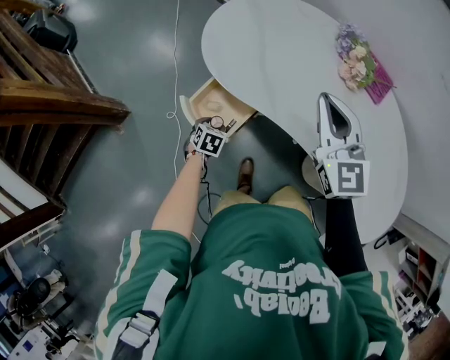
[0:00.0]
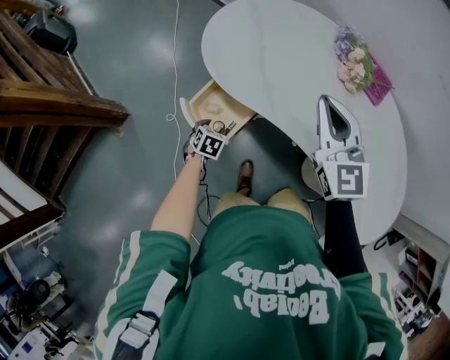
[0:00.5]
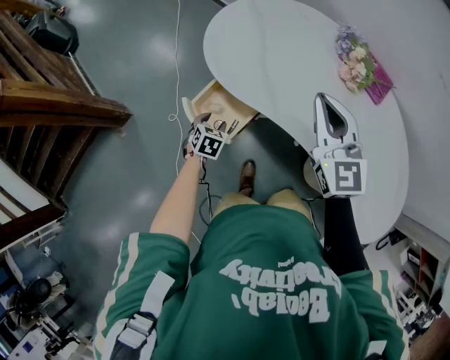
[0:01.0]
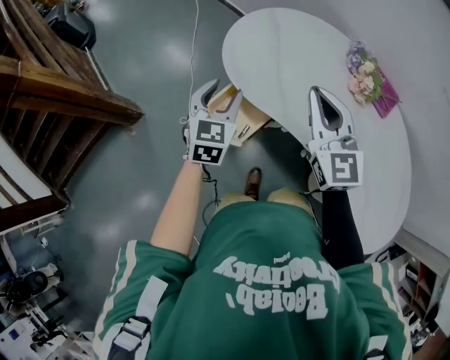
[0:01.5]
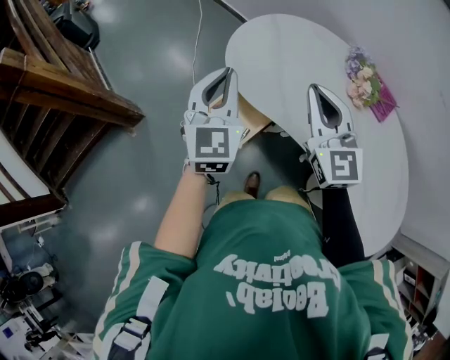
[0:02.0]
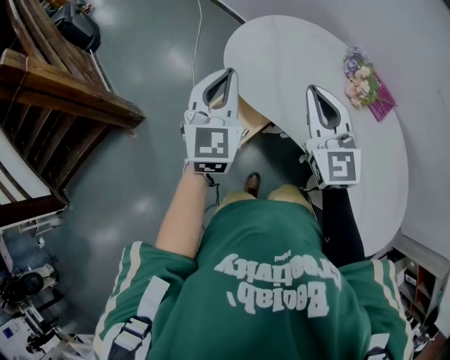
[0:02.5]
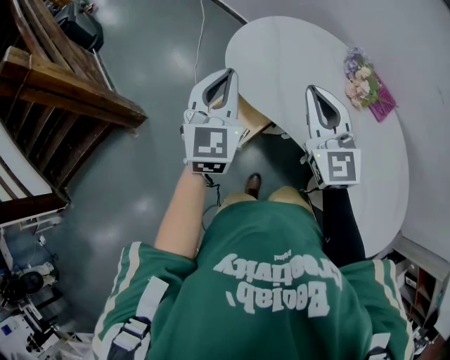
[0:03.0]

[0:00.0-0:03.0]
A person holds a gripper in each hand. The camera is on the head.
0:00.0 to 0:01.5: The right gripper goes roughly 5 cm to the left. The left gripper is displaced upward by roughly 30 cm, and tilts its fingers about 40 degrees upward.
0:01.5 to 0:03.0: The left gripper is displaced upward by about 15 cm, and closes up.

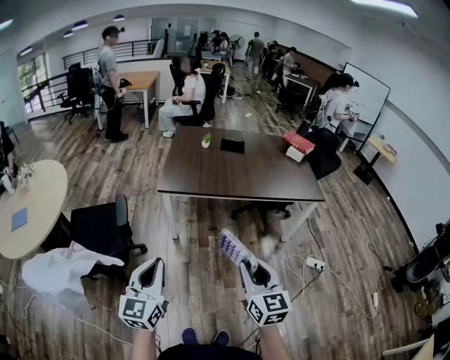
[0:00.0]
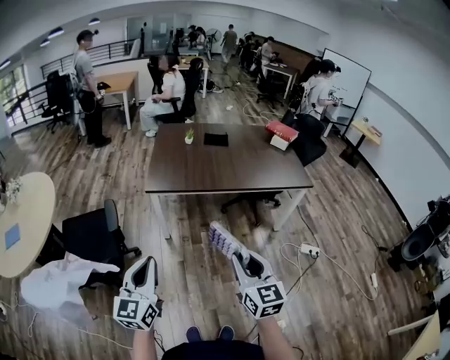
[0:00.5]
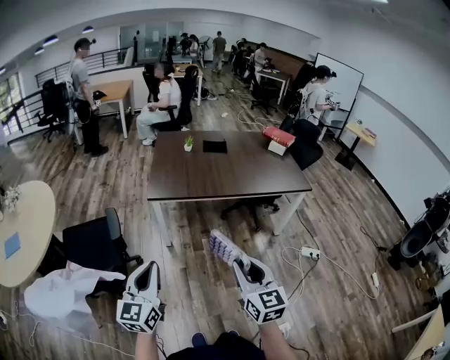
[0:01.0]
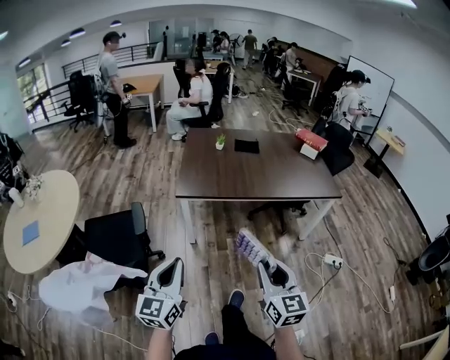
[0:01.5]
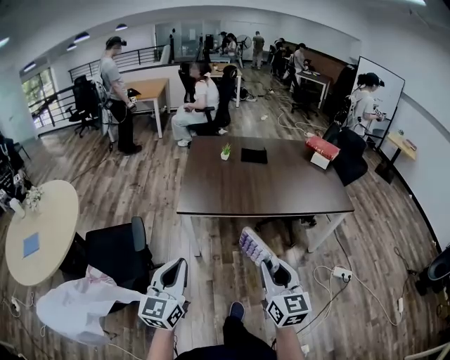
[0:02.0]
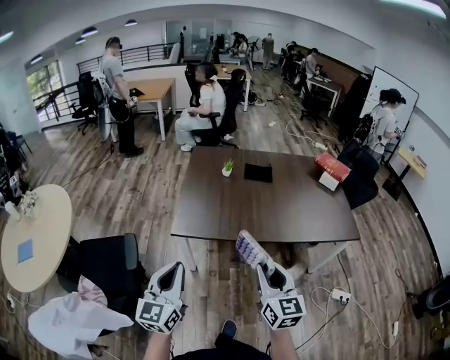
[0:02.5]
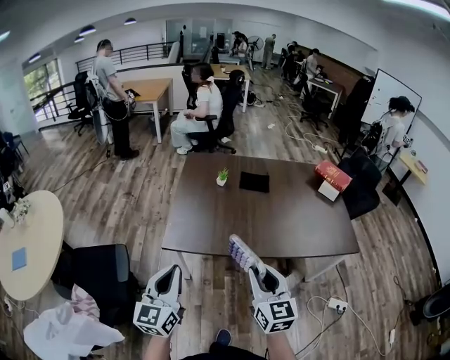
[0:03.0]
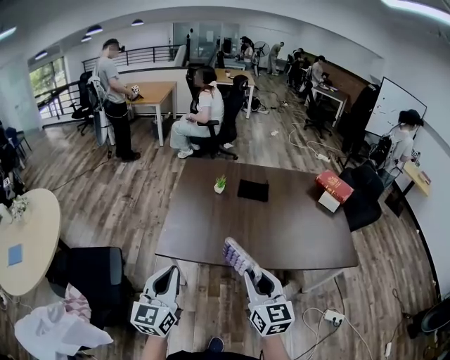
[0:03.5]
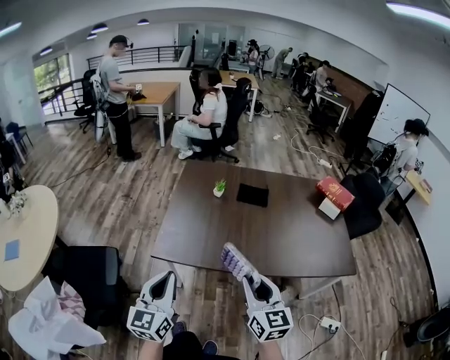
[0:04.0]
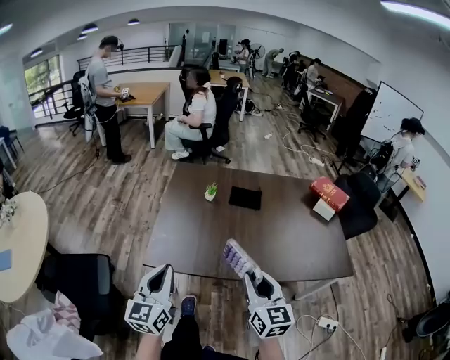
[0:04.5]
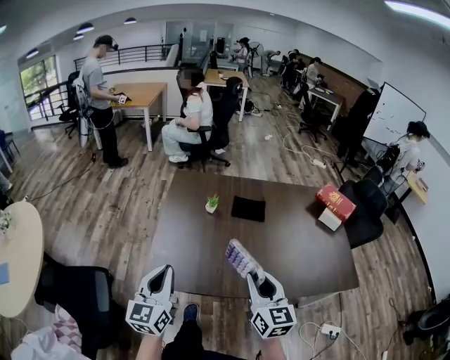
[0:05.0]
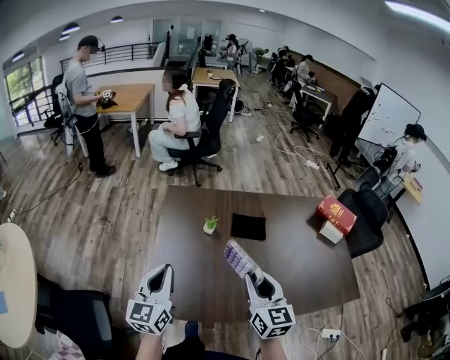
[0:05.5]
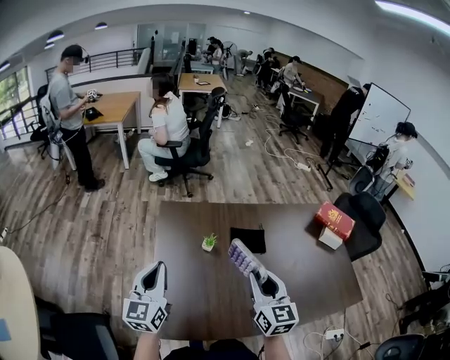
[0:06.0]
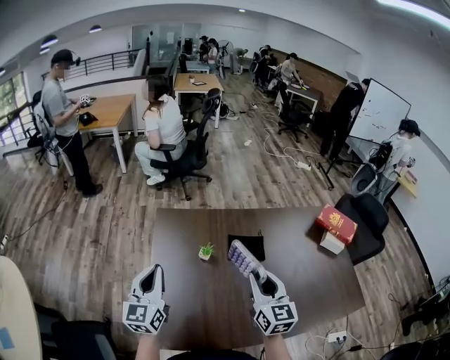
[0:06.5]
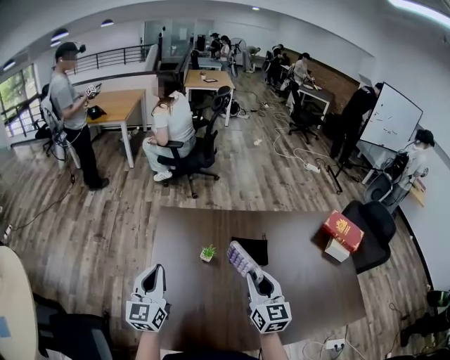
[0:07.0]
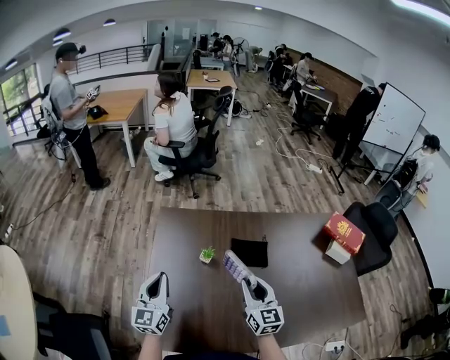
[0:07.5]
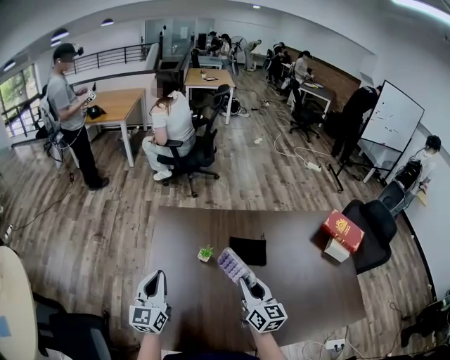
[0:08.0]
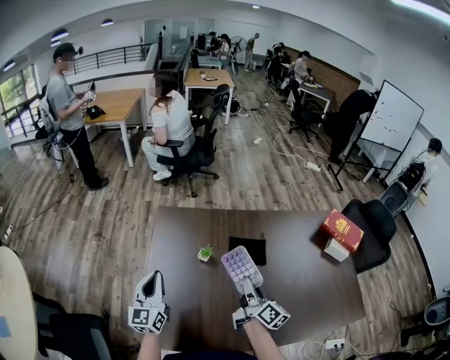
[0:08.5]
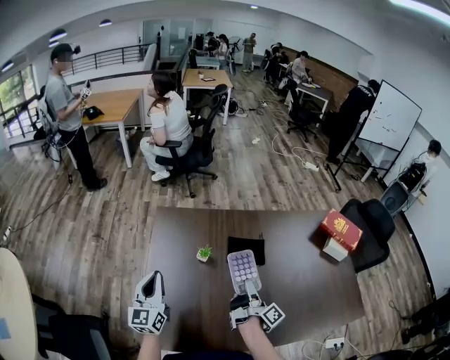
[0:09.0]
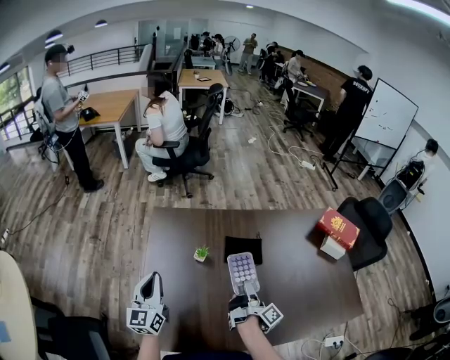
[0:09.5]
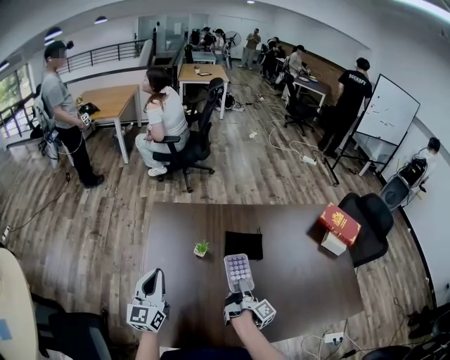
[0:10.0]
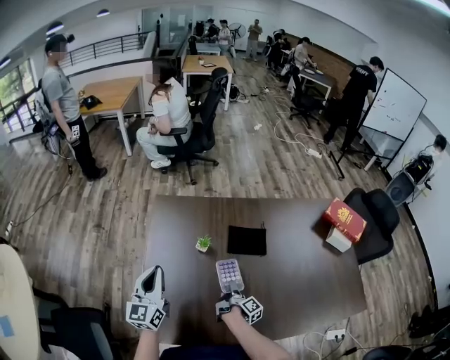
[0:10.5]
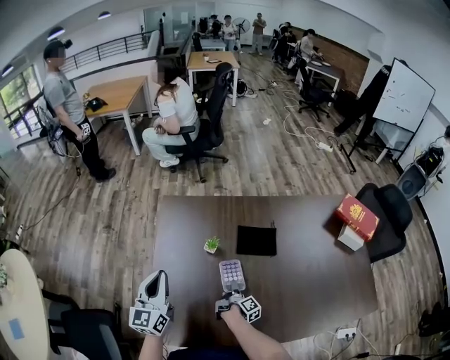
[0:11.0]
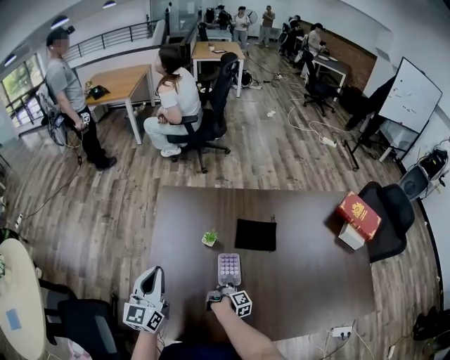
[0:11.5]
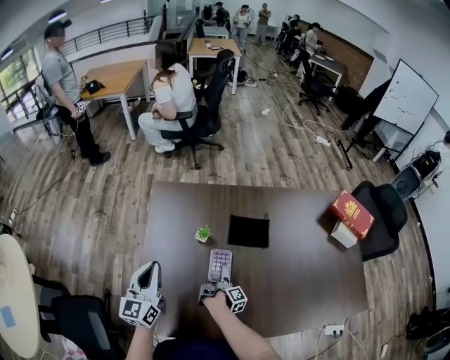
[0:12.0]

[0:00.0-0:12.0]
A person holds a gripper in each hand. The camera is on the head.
0:00.0 to 0:02.0: The two grippers go approximately 15 cm forward.
0:02.0 to 0:04.0: Both grippers move forward, about 30 cm.
0:04.0 to 0:06.0: Both grippers move forward, approximately 40 cm.
0:06.0 to 0:08.0: The left gripper goes some 10 cm downward and forward, while the right gripper moves forward and downward, about 15 cm.
0:08.0 to 0:10.0: The right gripper moves downward, some 15 cm, and rolls clockwise, seen from behind, by about 80 degrees.
0:10.0 to 0:12.0: The right gripper travels downward and to the left by approximately 15 cm, rotates about 20 degrees, and opens its fingers.

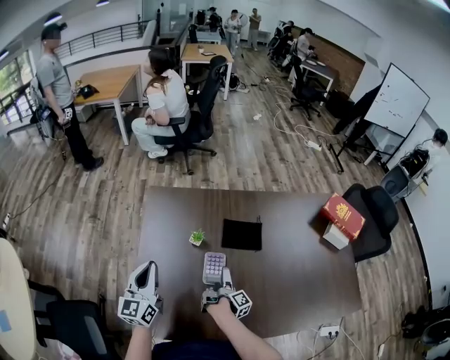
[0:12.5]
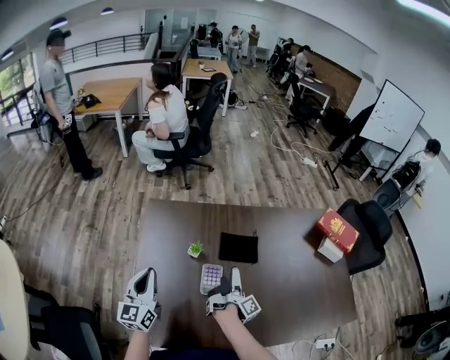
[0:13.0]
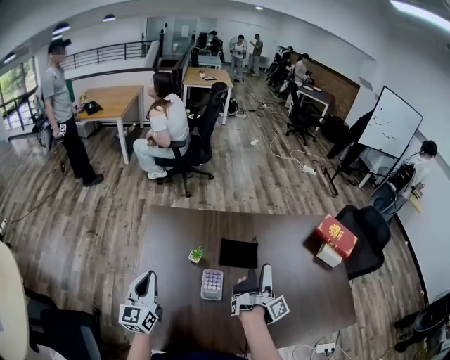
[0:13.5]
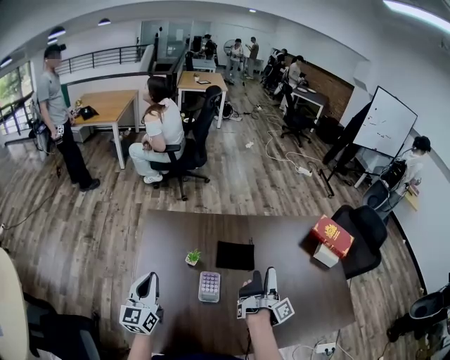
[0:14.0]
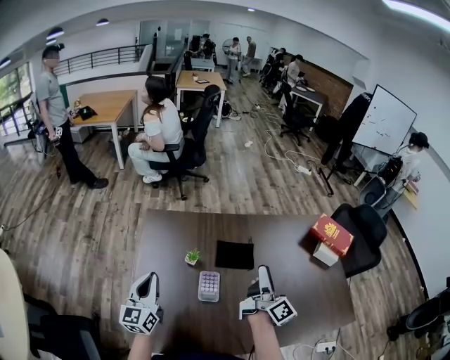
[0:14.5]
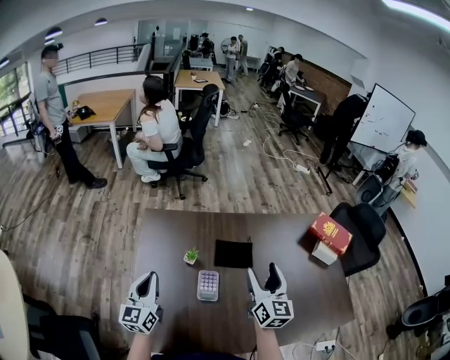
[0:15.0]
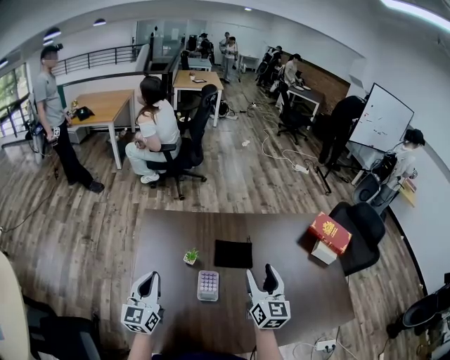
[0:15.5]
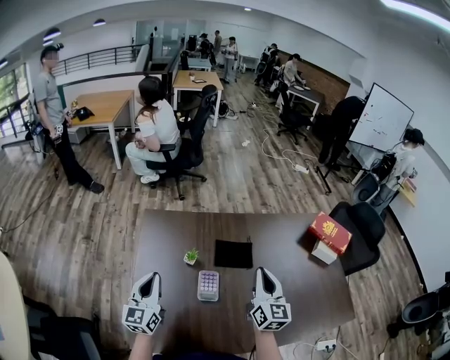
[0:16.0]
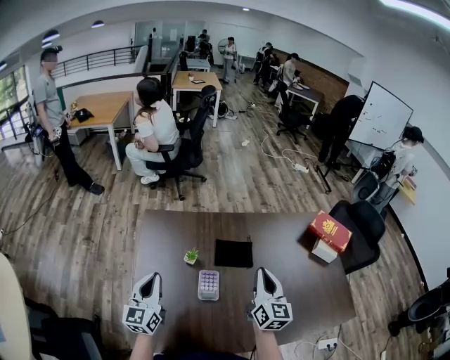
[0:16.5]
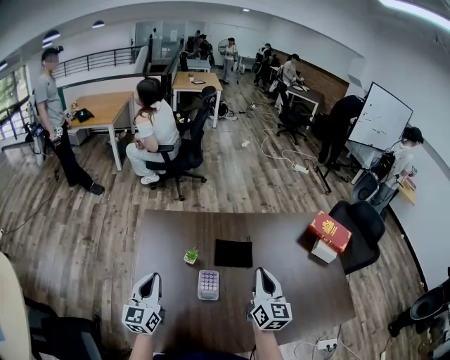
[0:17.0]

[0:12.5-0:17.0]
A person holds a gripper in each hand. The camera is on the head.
0:12.5 to 0:14.5: The right gripper moves upward, approximately 30 cm, and points its fingers some 30 degrees further upward.
0:14.5 to 0:17.0: The right gripper rotates around the line of its fingers by approximately 50 degrees, counterclockwise from behind, and closes up.

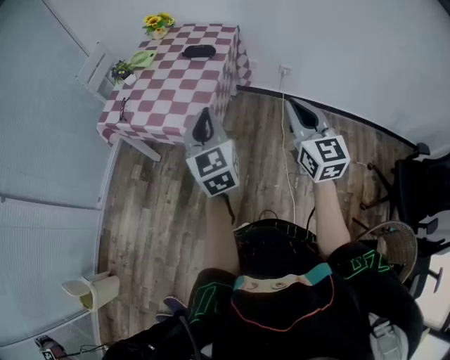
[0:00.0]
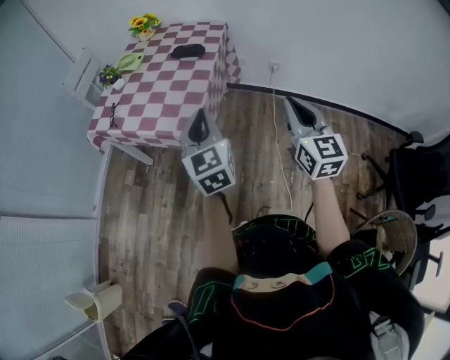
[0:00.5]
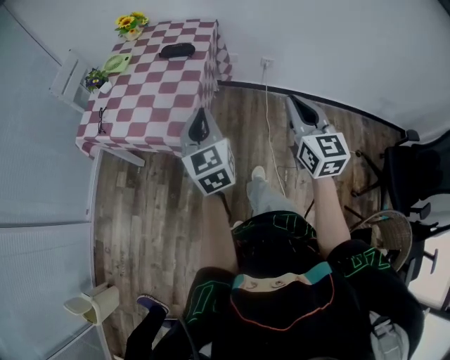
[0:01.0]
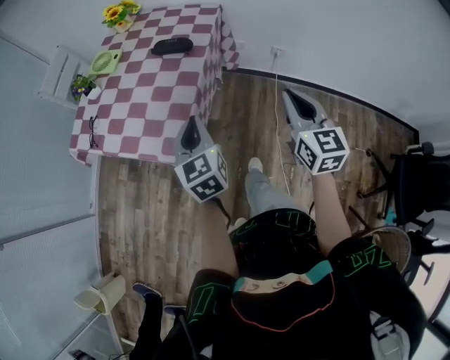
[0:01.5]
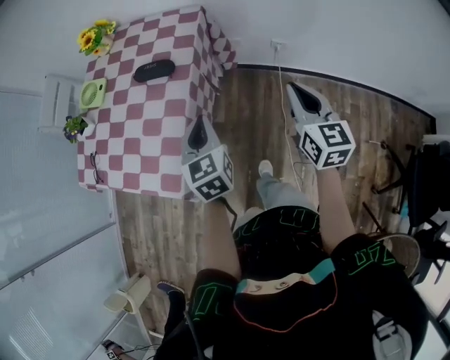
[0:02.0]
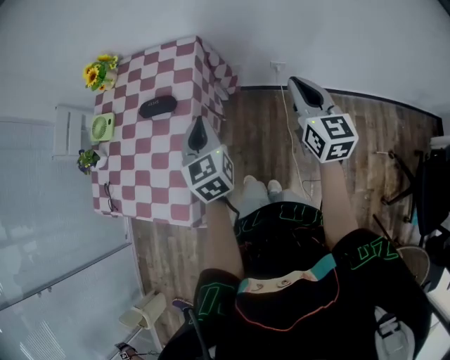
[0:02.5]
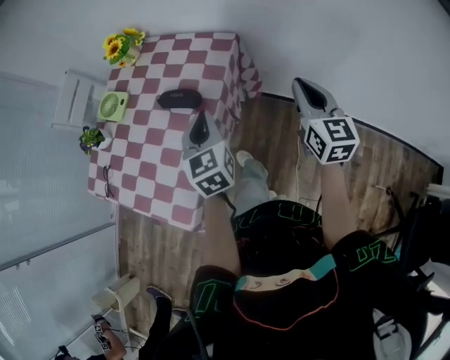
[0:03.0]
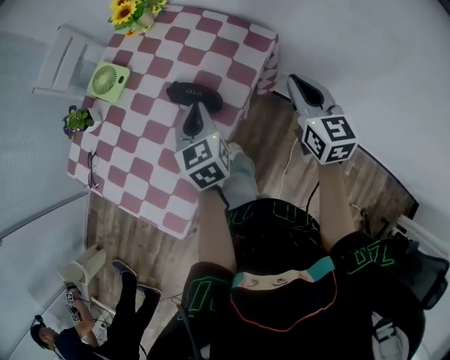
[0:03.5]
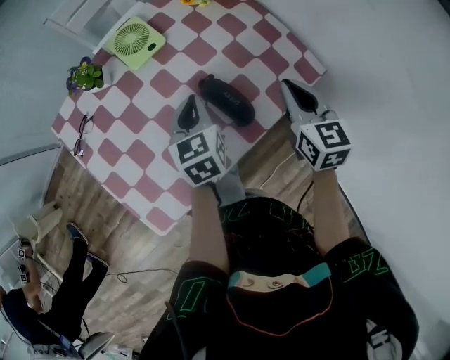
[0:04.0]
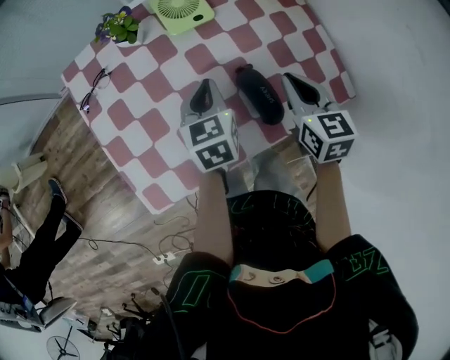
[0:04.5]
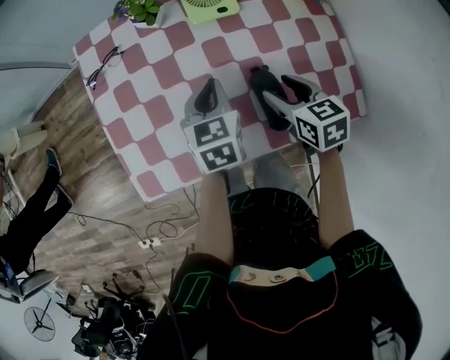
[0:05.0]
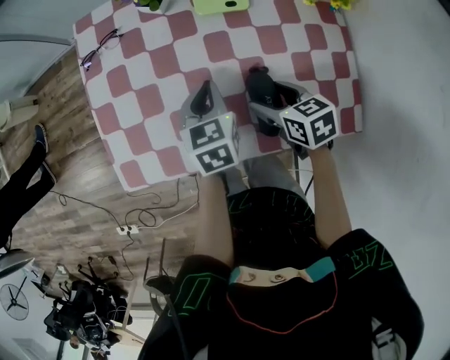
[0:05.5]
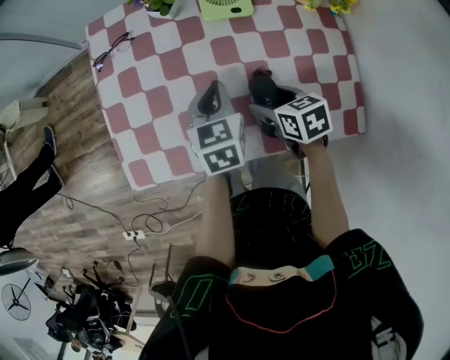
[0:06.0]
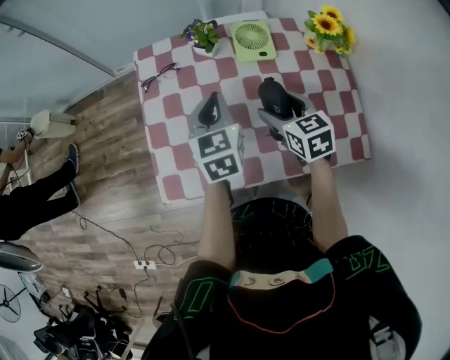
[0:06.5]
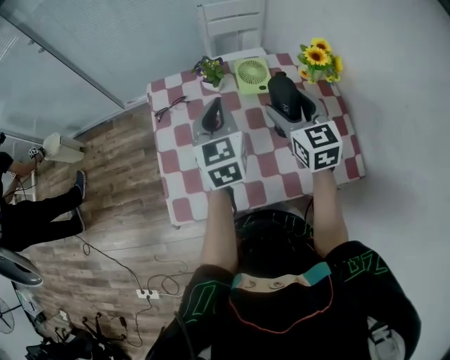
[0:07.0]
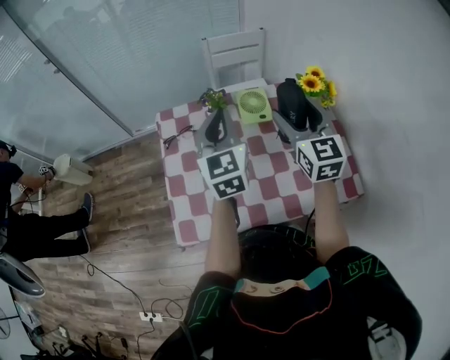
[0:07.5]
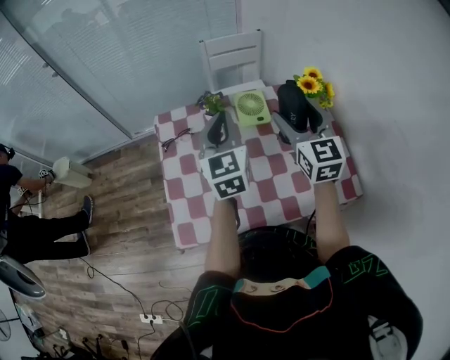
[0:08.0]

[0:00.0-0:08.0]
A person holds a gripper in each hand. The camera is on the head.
0:00.0 to 0:02.0: The right gripper goes approximately 35 cm forward, to the right and downward. Meanwhile the left gripper heads forward, downward and to the right, covering approximately 30 cm, and changes its angle by about 20 degrees.
0:02.0 to 0:04.0: The left gripper moves some 35 cm, and turns by about 40 degrees. The right gripper shifts by roughly 50 cm, and turns by some 40 degrees.
0:04.0 to 0:06.0: The right gripper shifts by about 20 cm, swivels roughly 50 degrees, and opens its fingers, while the left gripper changes place by about 10 cm, and turns by some 30 degrees.
0:06.0 to 0:08.0: Both grippers travel together upward, approximately 25 cm. The left gripper tips its fingers upward by roughly 30 degrees. The right gripper tips its fingers upward by about 50 degrees.
